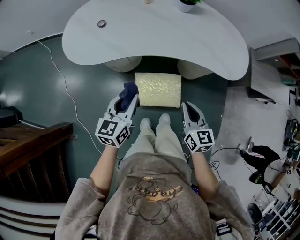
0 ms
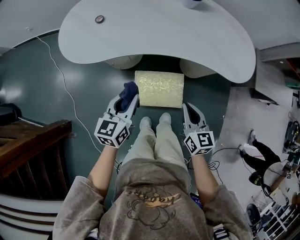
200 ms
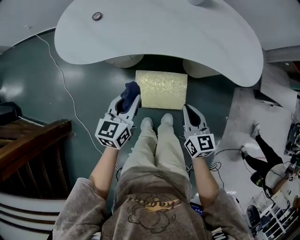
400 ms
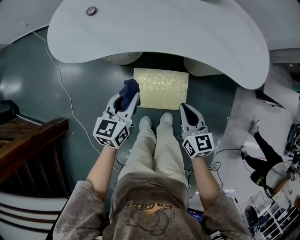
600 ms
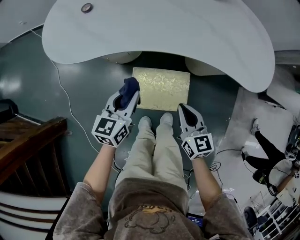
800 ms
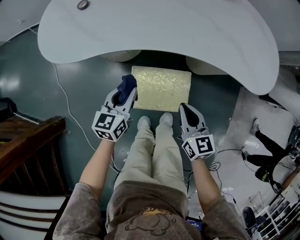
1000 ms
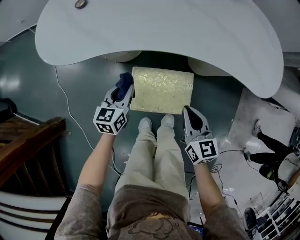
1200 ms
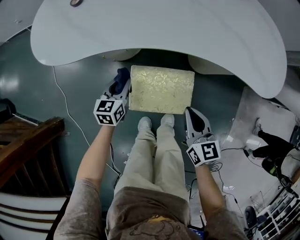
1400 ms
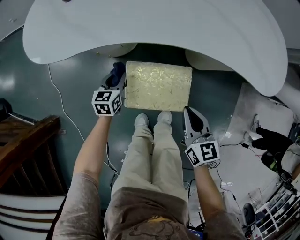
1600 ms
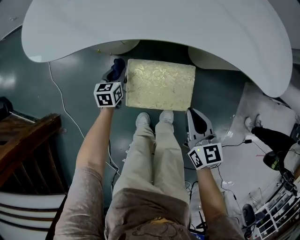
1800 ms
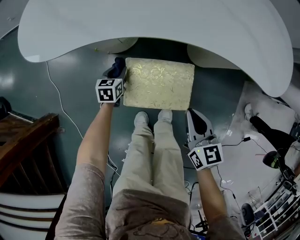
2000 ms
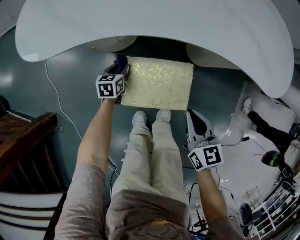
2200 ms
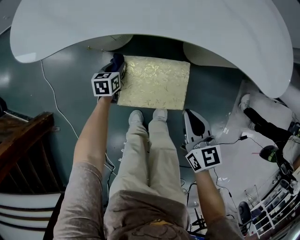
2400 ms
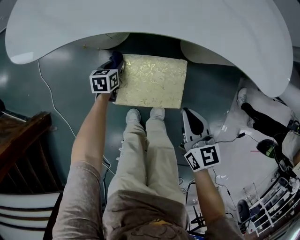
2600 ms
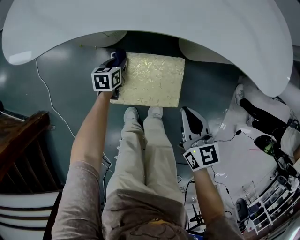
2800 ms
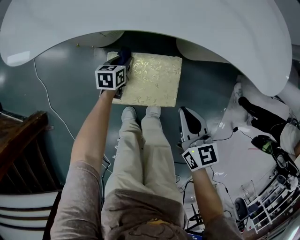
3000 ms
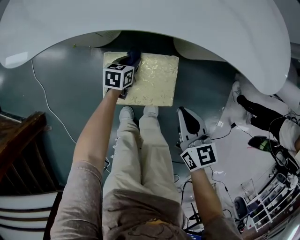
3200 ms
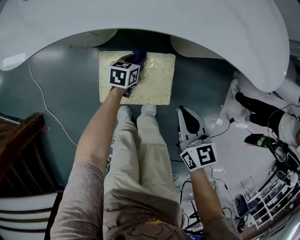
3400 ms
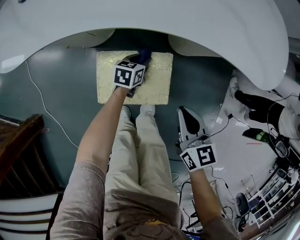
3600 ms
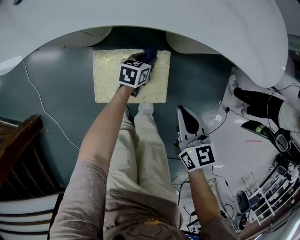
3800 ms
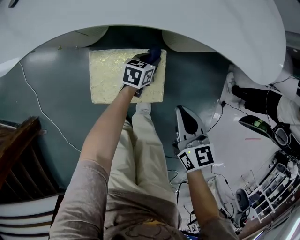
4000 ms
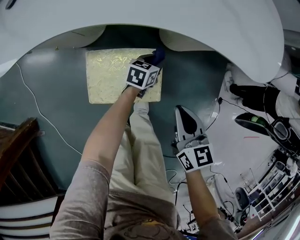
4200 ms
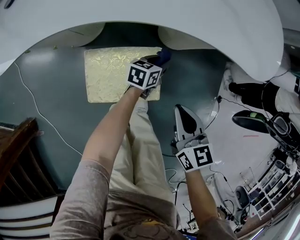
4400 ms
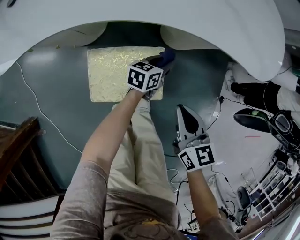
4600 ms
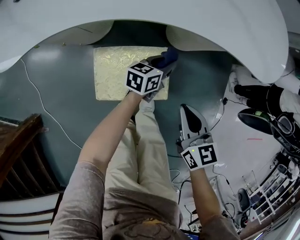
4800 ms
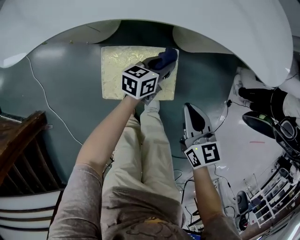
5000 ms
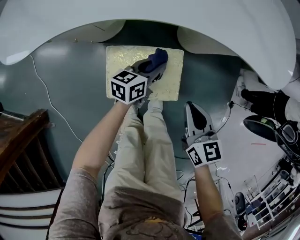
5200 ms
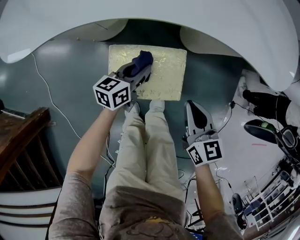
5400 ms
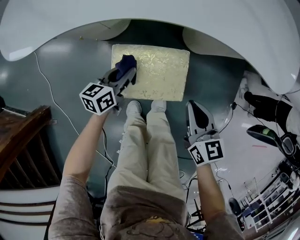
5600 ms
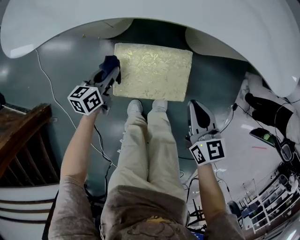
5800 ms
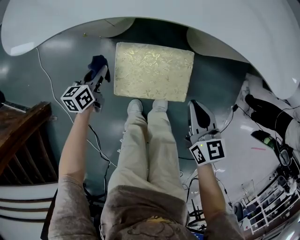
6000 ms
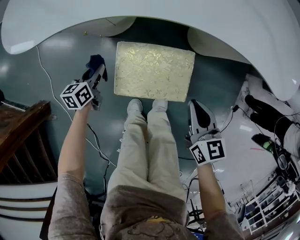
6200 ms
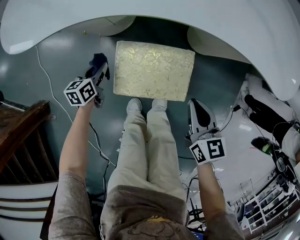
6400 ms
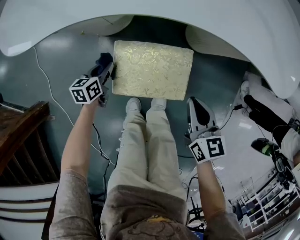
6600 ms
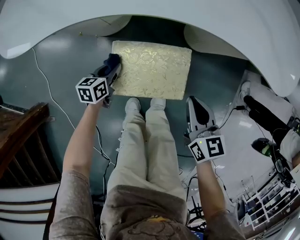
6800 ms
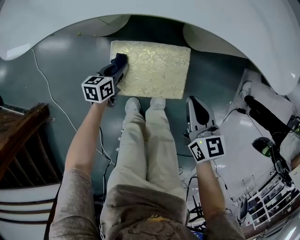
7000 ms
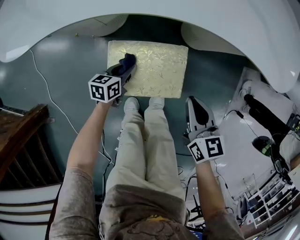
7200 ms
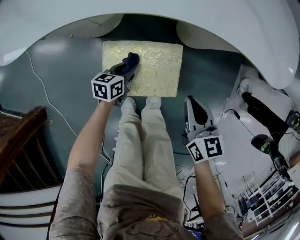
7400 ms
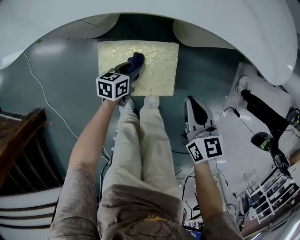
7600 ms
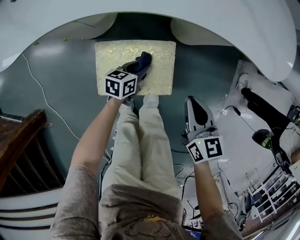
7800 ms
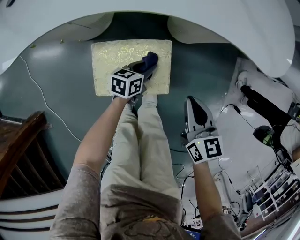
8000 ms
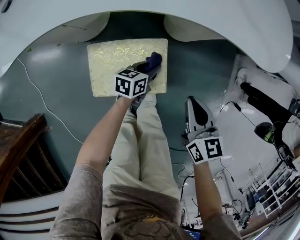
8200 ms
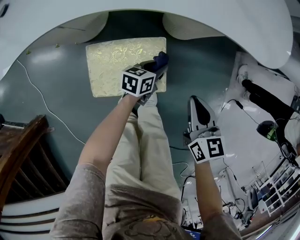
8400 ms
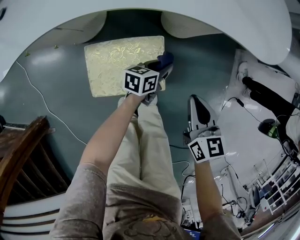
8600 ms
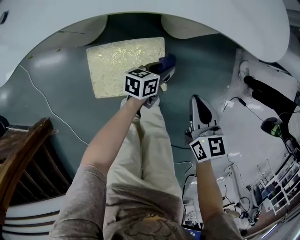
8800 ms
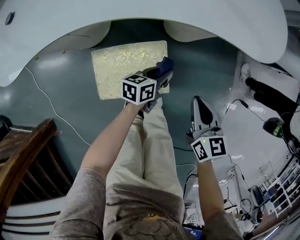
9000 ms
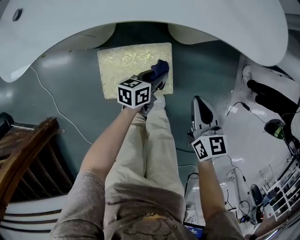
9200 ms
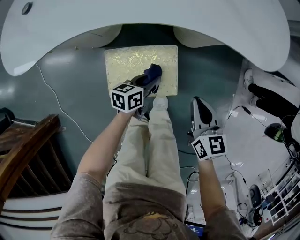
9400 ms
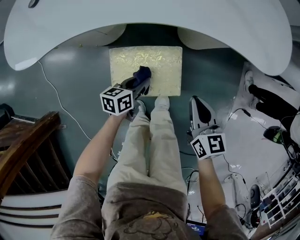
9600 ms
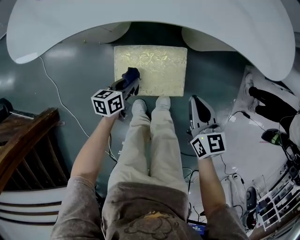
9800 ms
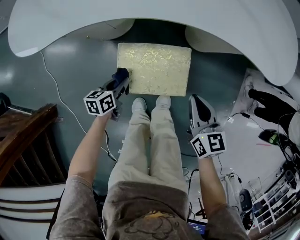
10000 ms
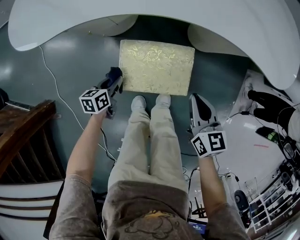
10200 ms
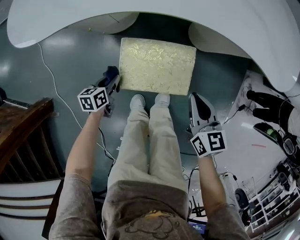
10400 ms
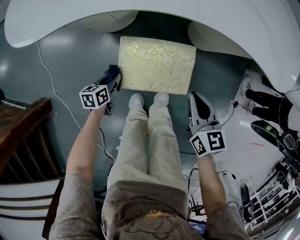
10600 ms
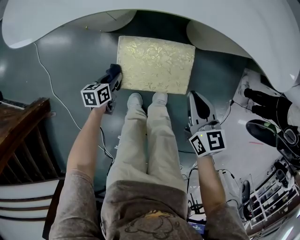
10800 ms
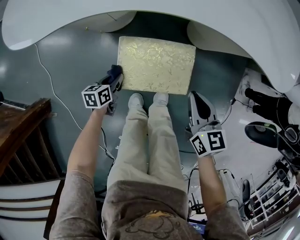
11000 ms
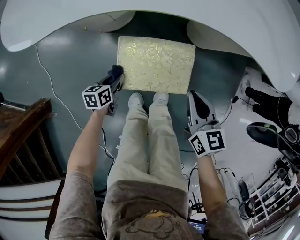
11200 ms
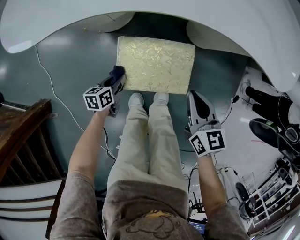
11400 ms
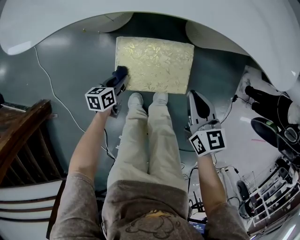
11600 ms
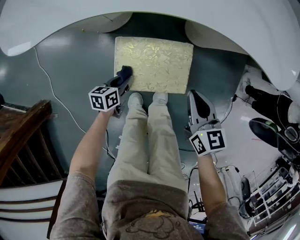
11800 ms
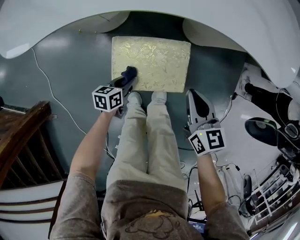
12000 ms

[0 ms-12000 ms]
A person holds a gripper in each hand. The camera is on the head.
0 ms to 1600 ms: The left gripper is displaced downward by some 30 cm, while the right gripper travels downward by about 15 cm.
1600 ms to 3000 ms: The left gripper shifts some 15 cm downward and to the right. Meanwhile the right gripper shifts by approximately 5 cm.
3000 ms to 4400 ms: The left gripper shifts some 25 cm to the right, and rotates about 30 degrees, while the right gripper moves to the right, about 5 cm.
4400 ms to 6000 ms: The right gripper heads to the left, covering roughly 5 cm. Meanwhile the left gripper is displaced to the left by approximately 40 cm, and rotates about 30 degrees.
6000 ms to 7600 ms: The right gripper shifts approximately 5 cm to the right, while the left gripper travels to the right by about 25 cm, and changes its angle by about 20 degrees.
7600 ms to 9000 ms: The left gripper heads to the right, covering approximately 15 cm; the right gripper moves to the right, roughly 5 cm.
9000 ms to 10400 ms: The left gripper heads to the left, covering roughly 35 cm, and turns by approximately 30 degrees, while the right gripper is displaced to the left by about 10 cm.
10400 ms to 12000 ms: The left gripper shifts about 10 cm to the right.

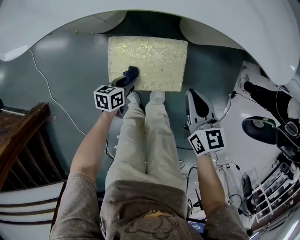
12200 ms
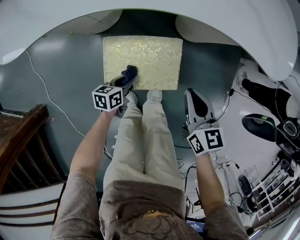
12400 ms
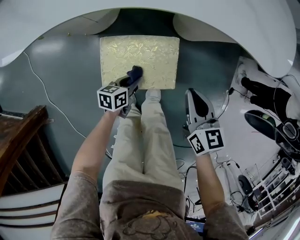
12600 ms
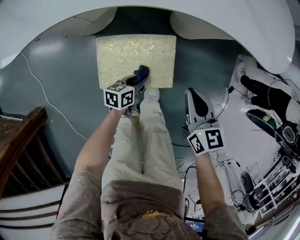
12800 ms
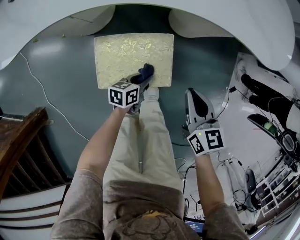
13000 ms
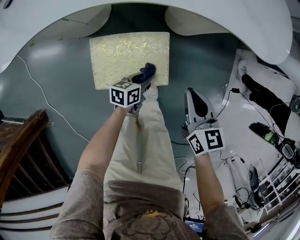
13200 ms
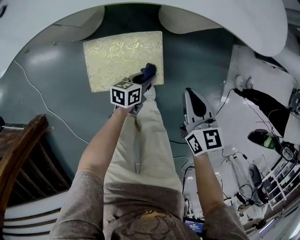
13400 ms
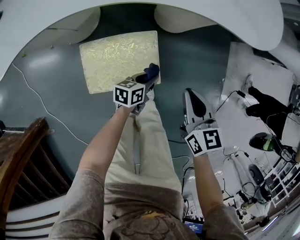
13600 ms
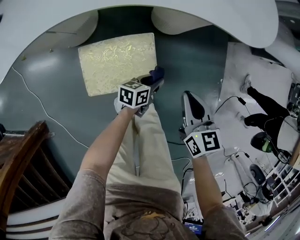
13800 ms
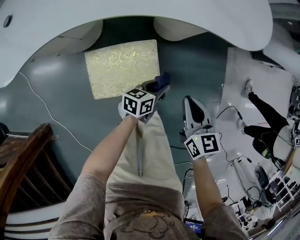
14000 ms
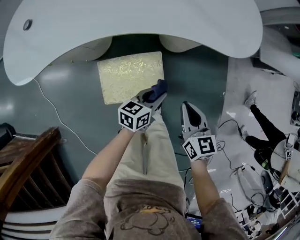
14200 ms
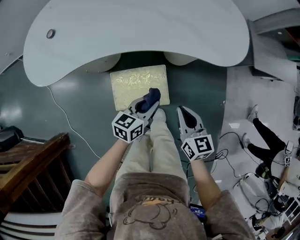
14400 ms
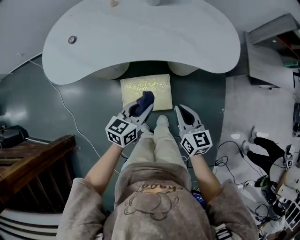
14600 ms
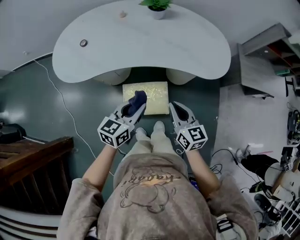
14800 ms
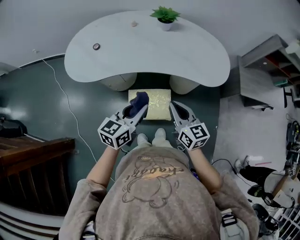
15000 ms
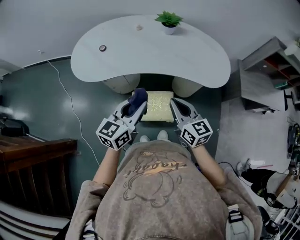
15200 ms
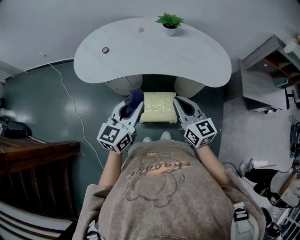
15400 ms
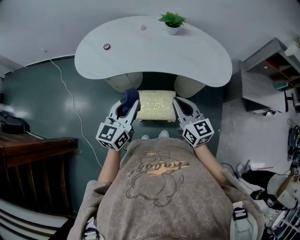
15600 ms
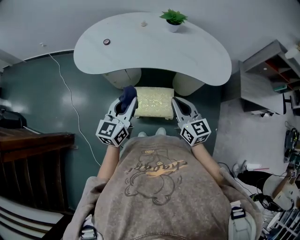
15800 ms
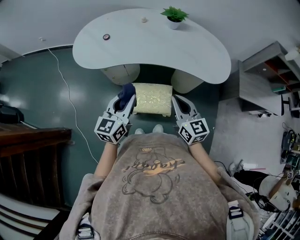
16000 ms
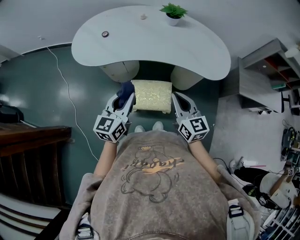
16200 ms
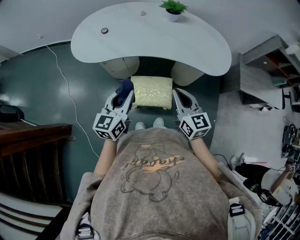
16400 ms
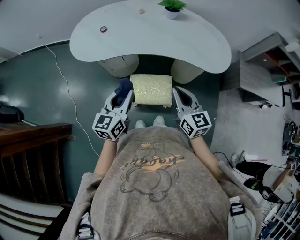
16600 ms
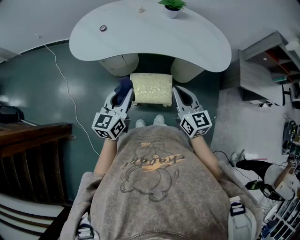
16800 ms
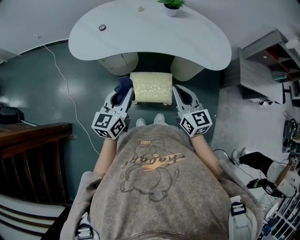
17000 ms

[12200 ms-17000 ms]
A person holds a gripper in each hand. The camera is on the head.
12200 ms to 13800 ms: The right gripper travels to the right by roughly 10 cm, while the left gripper moves to the right, some 25 cm.
13800 ms to 15400 ms: The right gripper heads upward, covering about 35 cm, and turns by approximately 30 degrees. Meanwhile the left gripper travels upward by some 60 cm, and swivels approximately 60 degrees.
15400 ms to 17000 ms: The right gripper shifts by roughly 5 cm. The left gripper moves downward, approximately 5 cm.

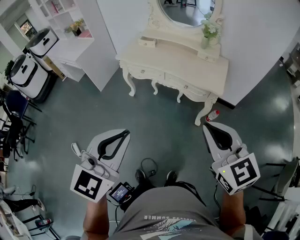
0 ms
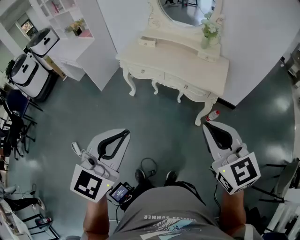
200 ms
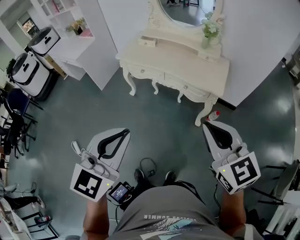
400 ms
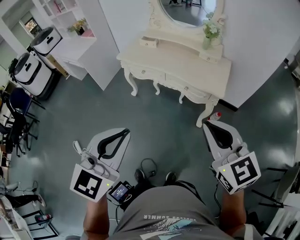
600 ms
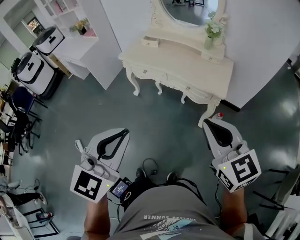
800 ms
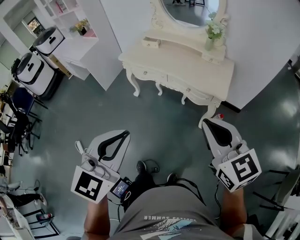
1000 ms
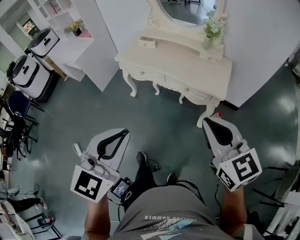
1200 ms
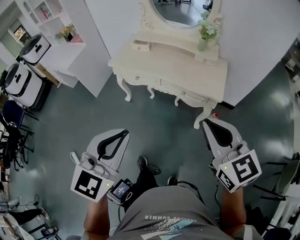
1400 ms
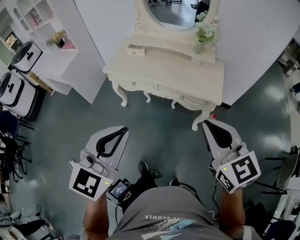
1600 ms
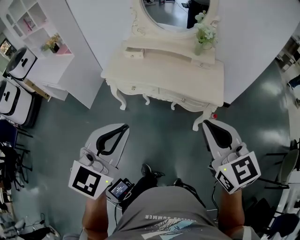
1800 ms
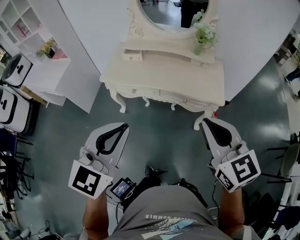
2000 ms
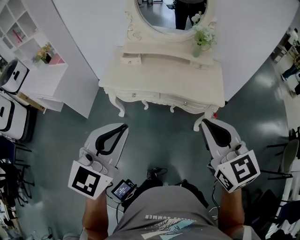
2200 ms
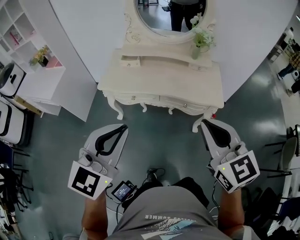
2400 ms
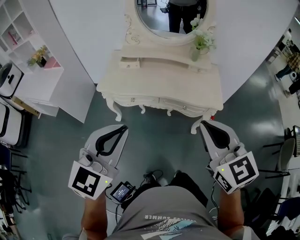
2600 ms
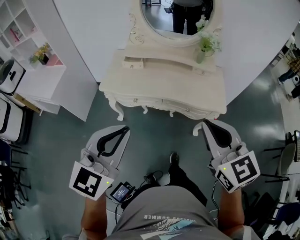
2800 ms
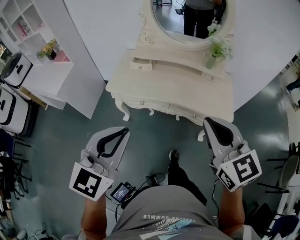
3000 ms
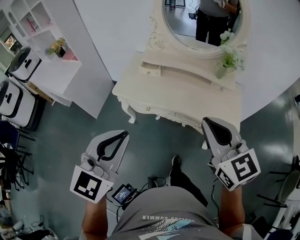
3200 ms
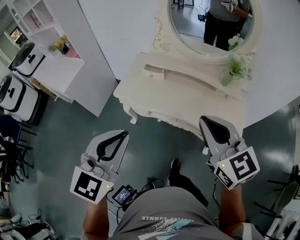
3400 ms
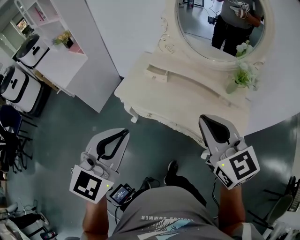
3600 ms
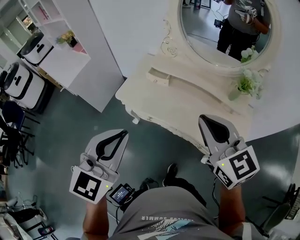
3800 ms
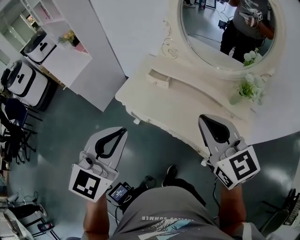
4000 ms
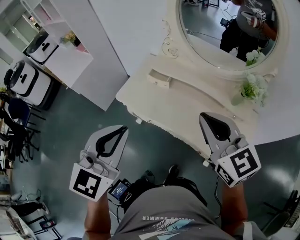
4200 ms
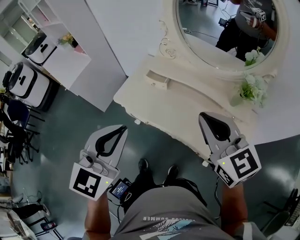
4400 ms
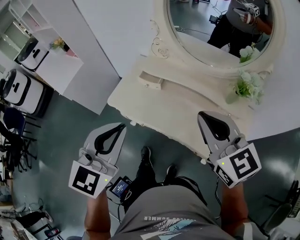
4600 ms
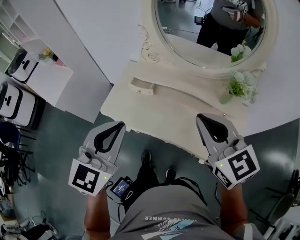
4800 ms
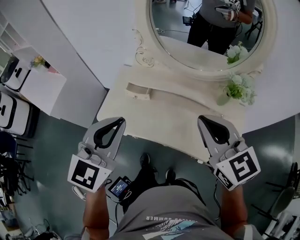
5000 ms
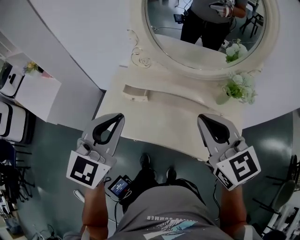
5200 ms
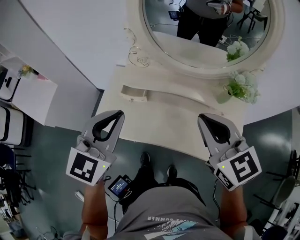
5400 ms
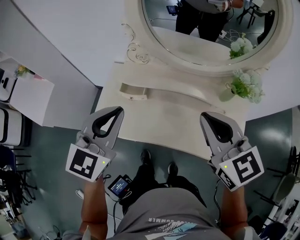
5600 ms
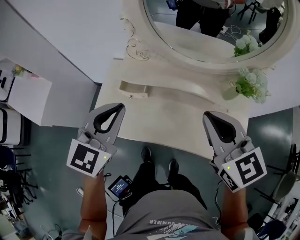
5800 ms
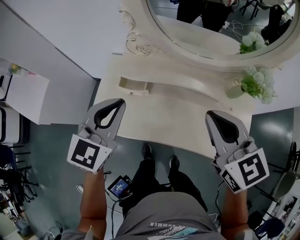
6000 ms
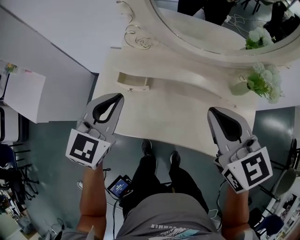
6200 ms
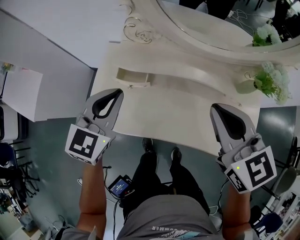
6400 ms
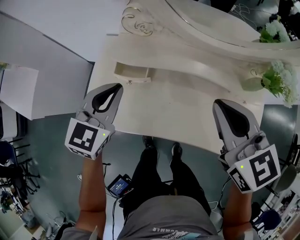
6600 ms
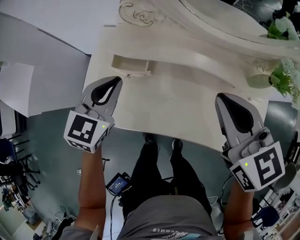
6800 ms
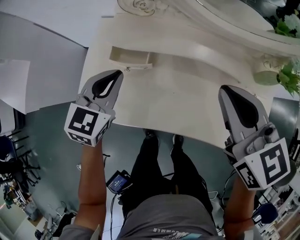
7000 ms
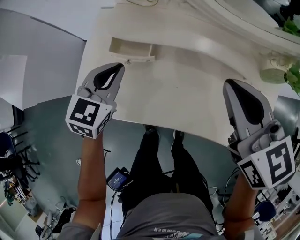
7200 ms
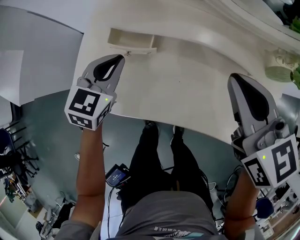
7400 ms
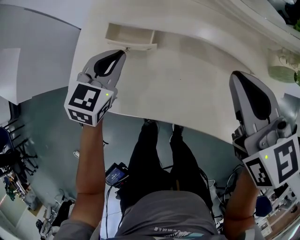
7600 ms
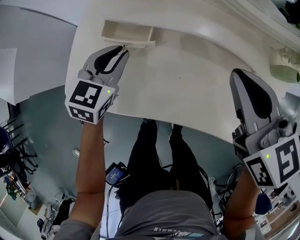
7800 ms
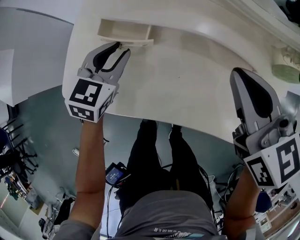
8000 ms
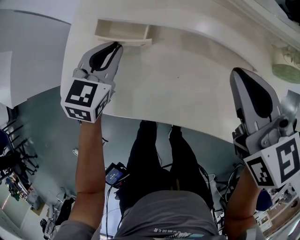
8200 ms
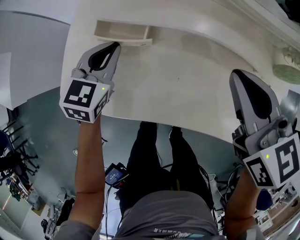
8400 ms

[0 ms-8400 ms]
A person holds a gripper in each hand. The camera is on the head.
0 ms to 1400 ms: The two grippers go about 10 cm forward.
1400 ms to 2800 ms: The left gripper shifts about 25 cm forward and to the left. Meanwhile the right gripper shifts roughly 20 cm to the left and forward.
2800 ms to 4200 ms: The right gripper ends up some 30 cm from where it was, and rotates some 30 degrees. Meanwhile the left gripper moves roughly 25 cm, and turns by roughly 30 degrees.
4200 ms to 5600 ms: The left gripper heads forward, covering about 25 cm. The right gripper travels forward by some 10 cm.
5600 ms to 7000 ms: The right gripper heads downward and forward, covering about 15 cm. Meanwhile the left gripper shifts approximately 25 cm downward and forward.
7000 ms to 8400 ms: The two grippers go about 10 cm downward. The left gripper opens, then closes once more.
